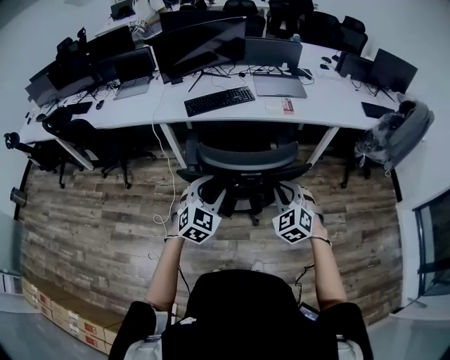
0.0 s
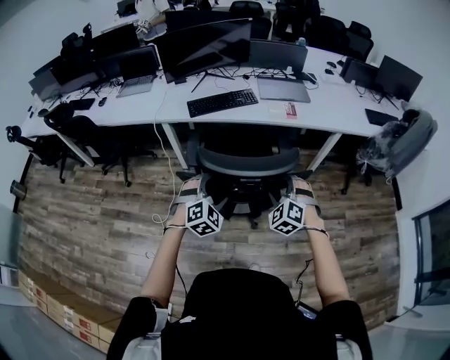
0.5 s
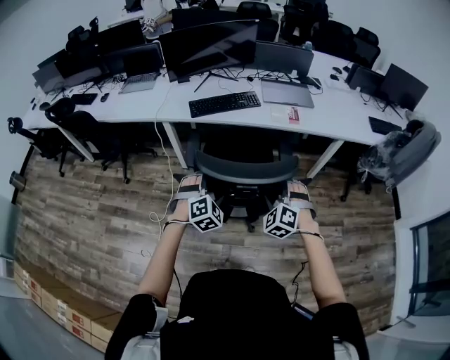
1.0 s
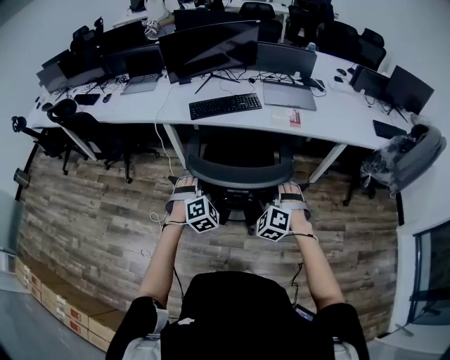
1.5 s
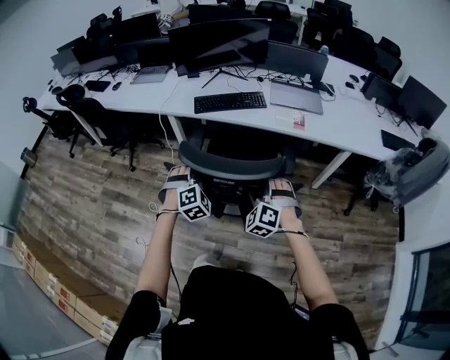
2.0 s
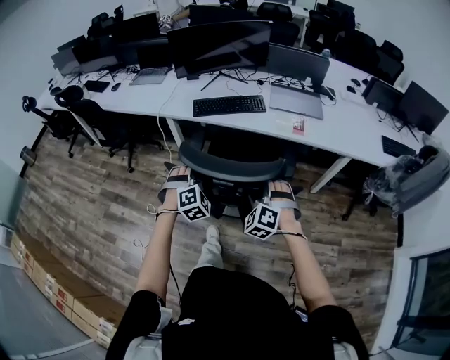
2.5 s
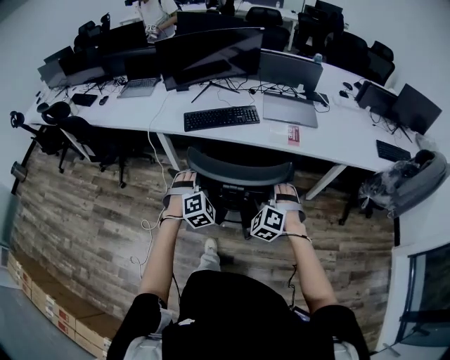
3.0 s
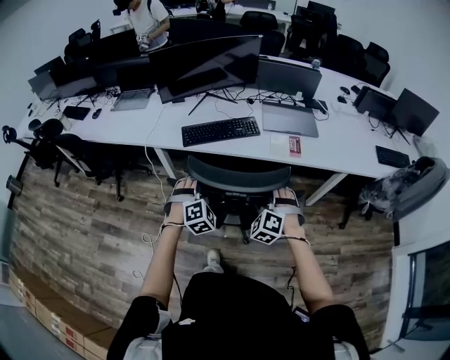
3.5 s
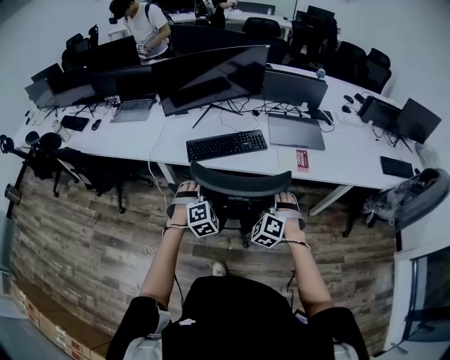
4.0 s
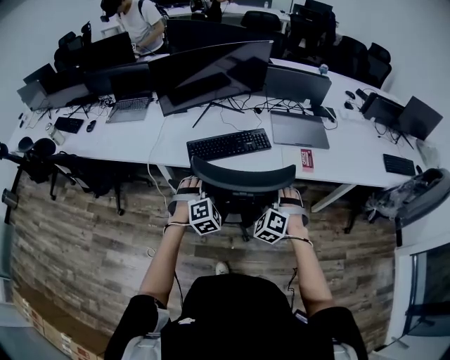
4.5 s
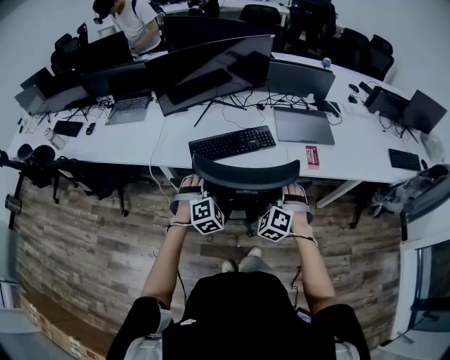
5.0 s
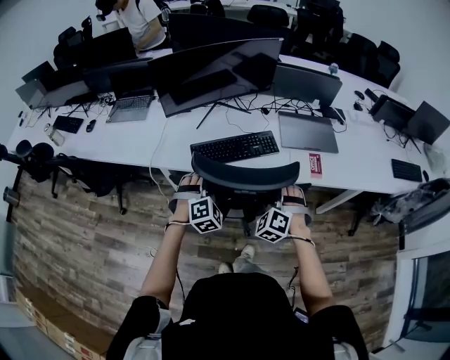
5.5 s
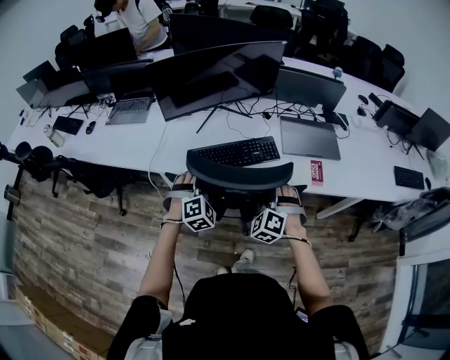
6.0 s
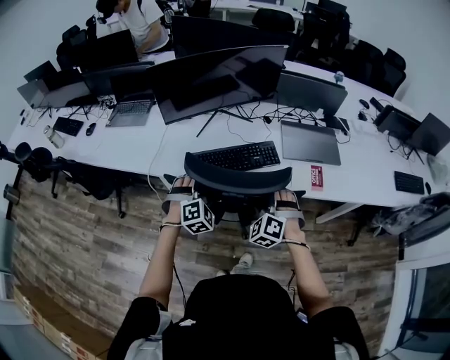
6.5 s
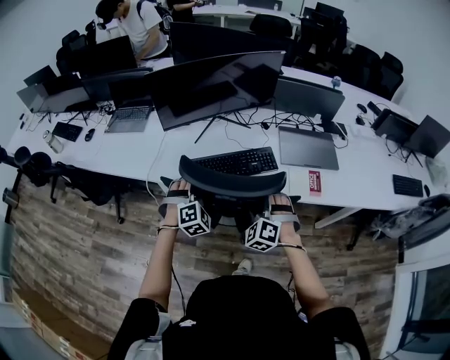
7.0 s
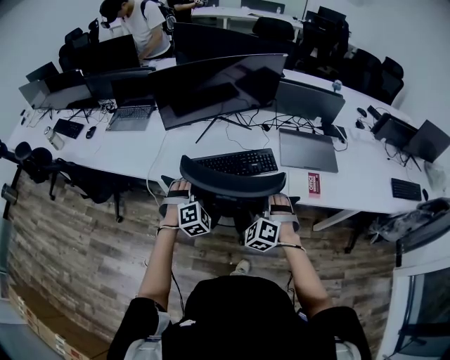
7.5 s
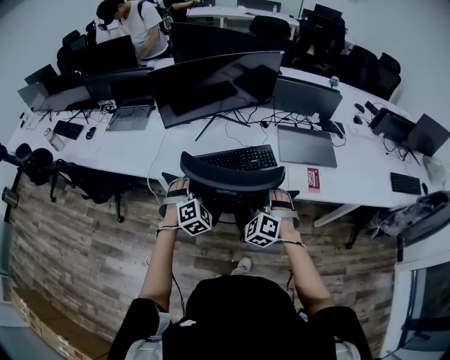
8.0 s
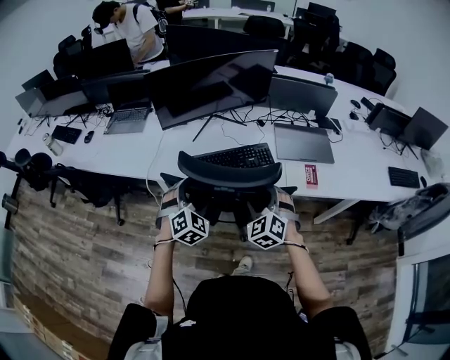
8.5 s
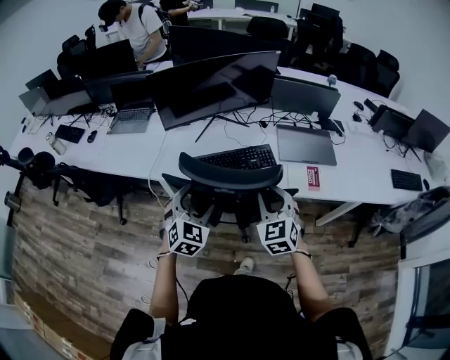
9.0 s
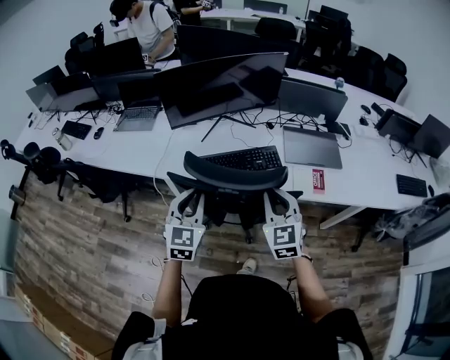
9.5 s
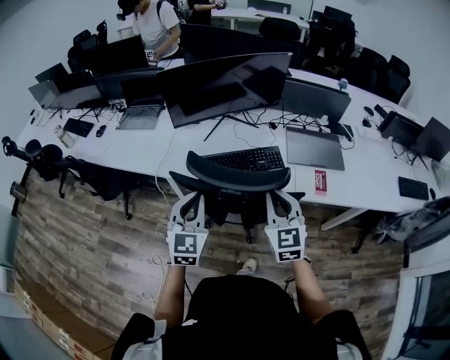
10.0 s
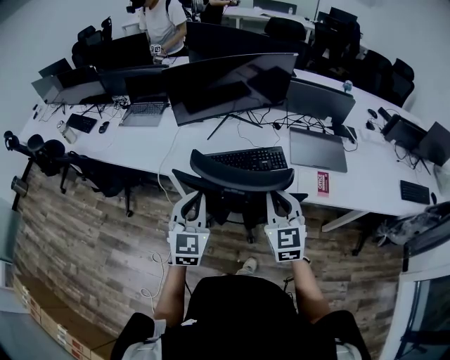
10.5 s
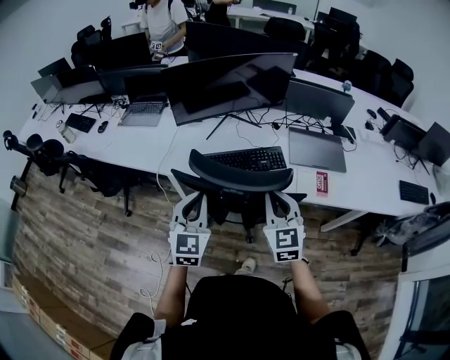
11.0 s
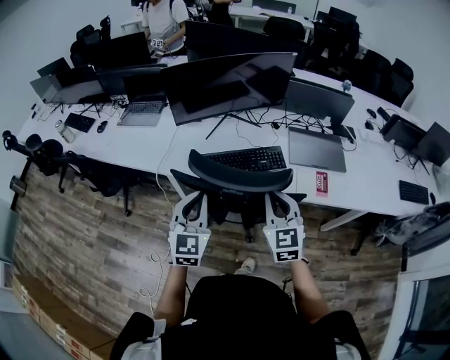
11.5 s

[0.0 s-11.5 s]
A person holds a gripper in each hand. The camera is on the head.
0.0 to 2.0 s: The right gripper travels forward by roughly 10 cm, swivels approximately 30 degrees, and opens up, while the left gripper heads forward and downward, covering about 15 cm, rotates roughly 30 degrees, and opens.
2.0 to 4.0 s: The two grippers go about 25 cm forward.
4.0 to 6.0 s: The grippers both shift forward and to the left by some 15 cm.
6.0 to 7.5 s: The grippers make only small movements.
7.5 to 9.5 s: The right gripper heads upward, covering approximately 10 cm, twists approximately 40 degrees clockwise, seen from behind, and closes up. Meanwhile the left gripper shifts approximately 15 cm upward and backward, rolls counterclockwise, seen from behind, by approximately 50 degrees, and closes up.
9.5 to 11.5 s: There are only small adjustments of the grippers.

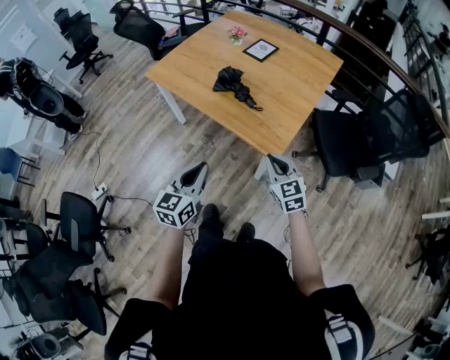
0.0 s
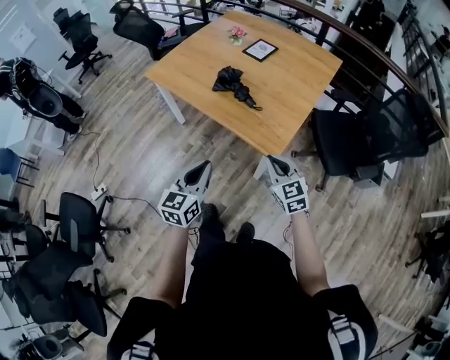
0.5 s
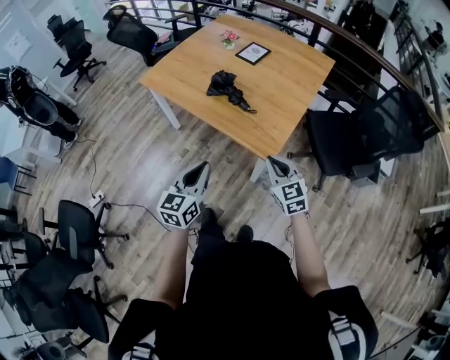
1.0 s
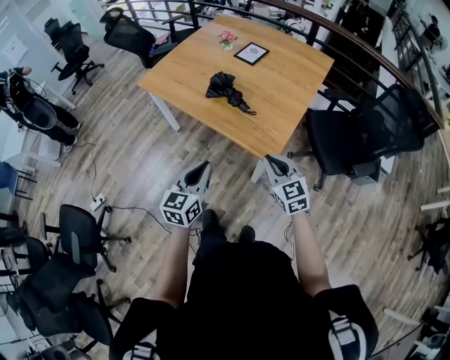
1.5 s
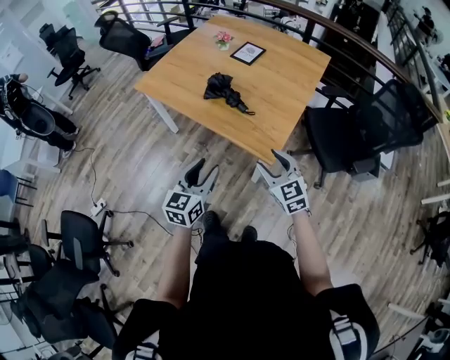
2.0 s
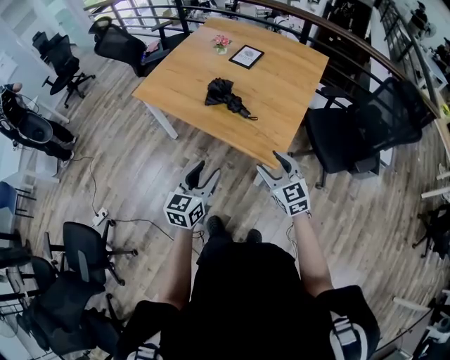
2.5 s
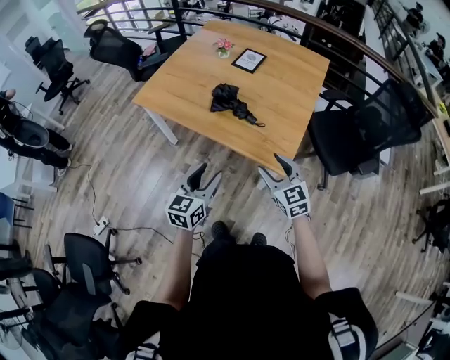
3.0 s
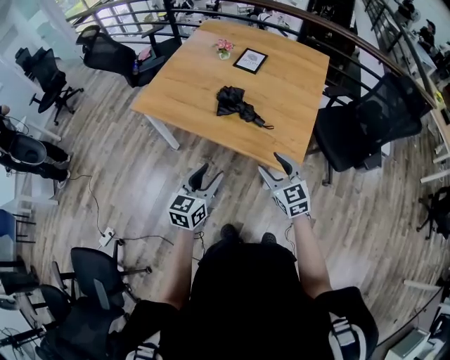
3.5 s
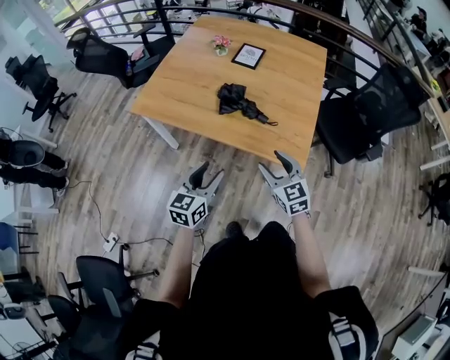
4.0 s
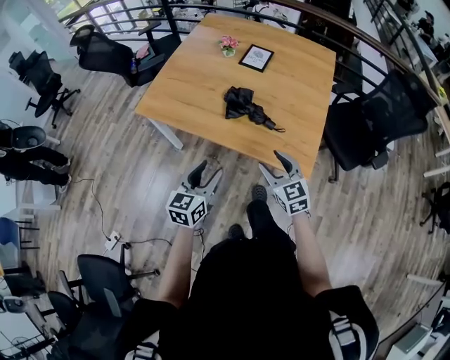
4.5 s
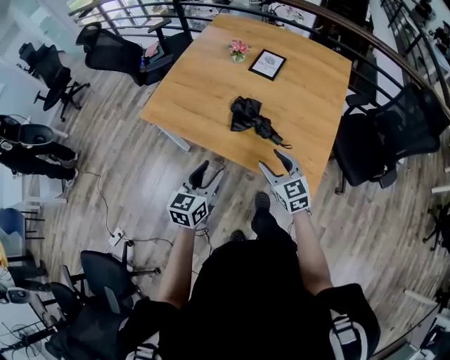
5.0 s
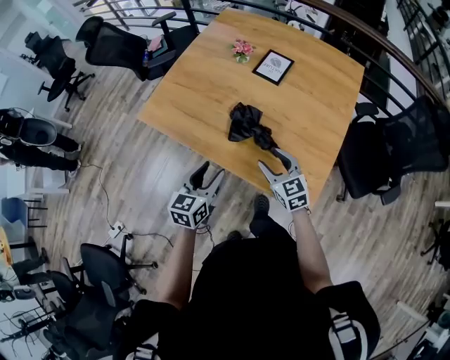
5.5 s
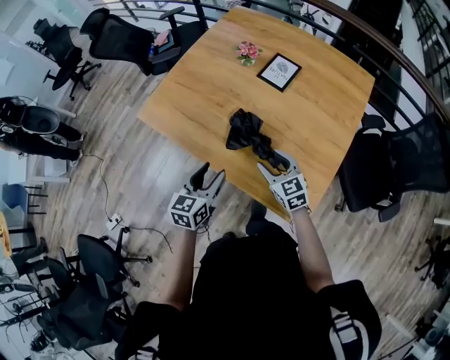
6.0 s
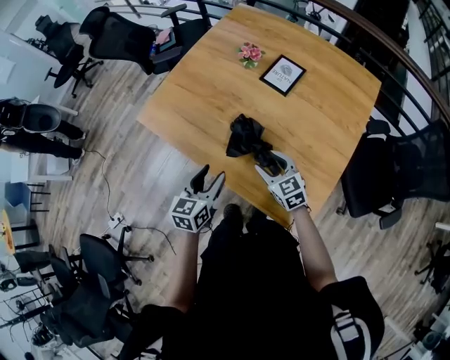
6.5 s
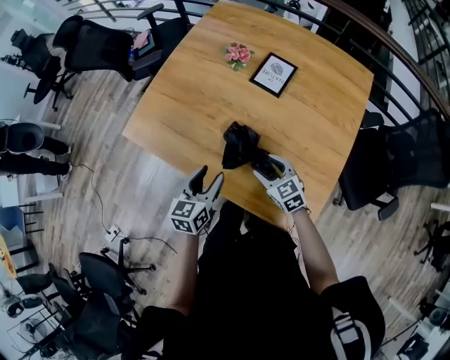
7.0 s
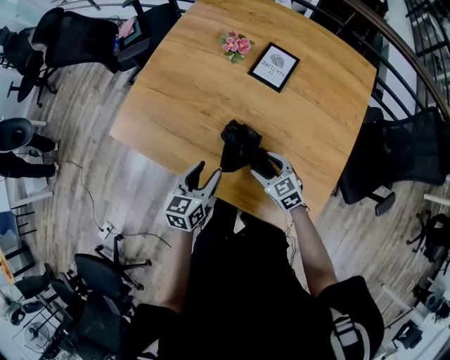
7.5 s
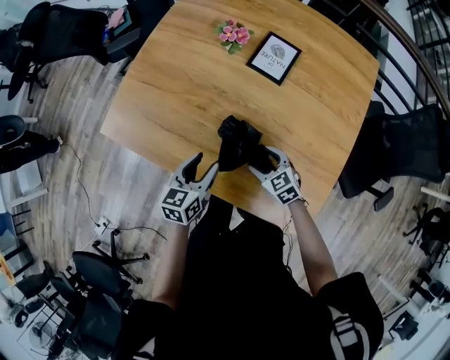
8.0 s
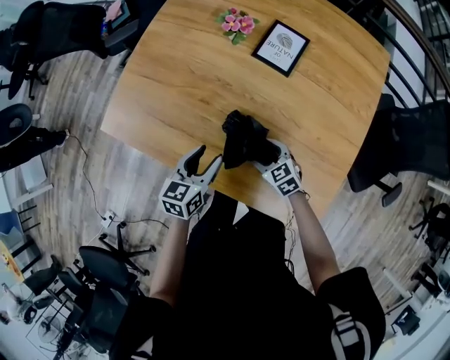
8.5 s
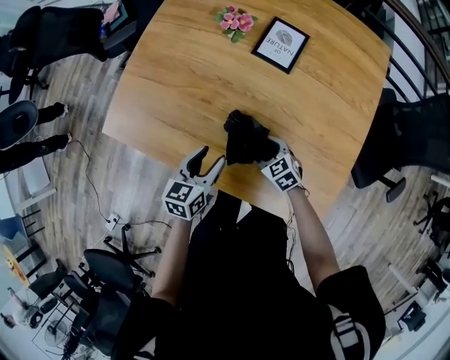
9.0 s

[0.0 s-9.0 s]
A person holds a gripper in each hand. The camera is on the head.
0.0 to 2.0 s: The right gripper opens its fingers, while the left gripper opens up.
2.0 to 4.5 s: Both grippers travel together to the left and forward, about 20 cm.
4.5 to 7.0 s: The right gripper travels forward and downward by roughly 25 cm, and changes its angle by about 20 degrees. Meanwhile the left gripper is displaced forward by roughly 25 cm.
7.0 to 9.0 s: The left gripper shifts about 10 cm downward and forward, while the right gripper travels downward by approximately 15 cm.

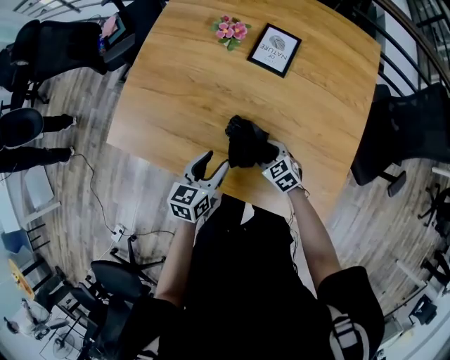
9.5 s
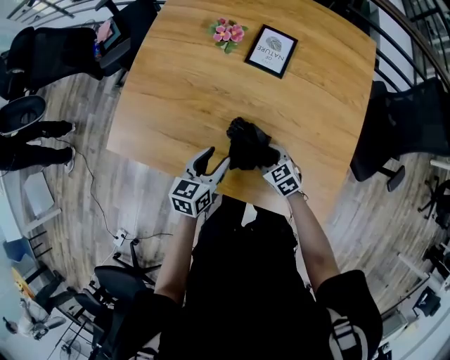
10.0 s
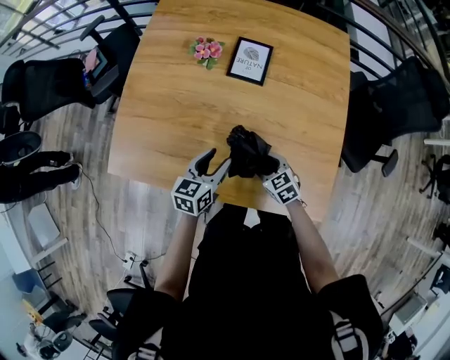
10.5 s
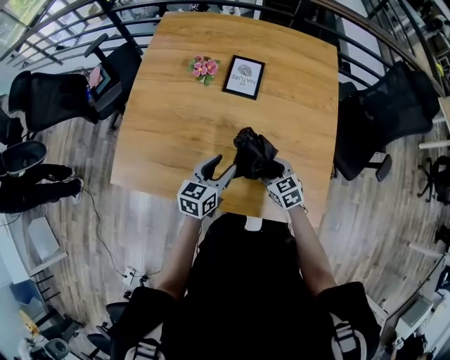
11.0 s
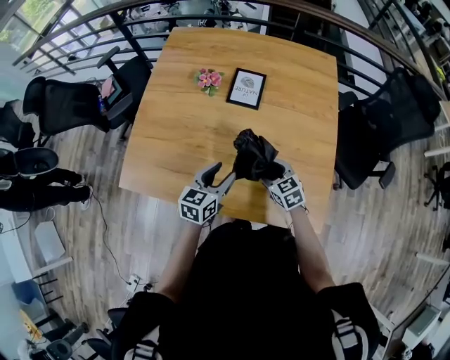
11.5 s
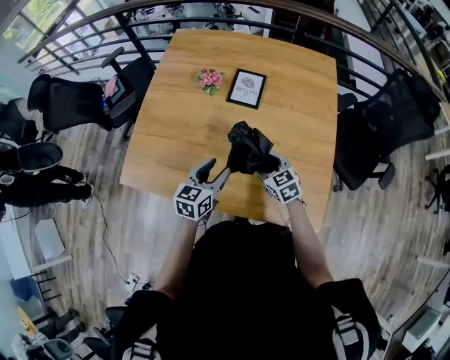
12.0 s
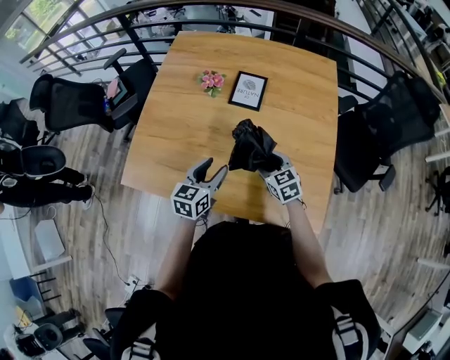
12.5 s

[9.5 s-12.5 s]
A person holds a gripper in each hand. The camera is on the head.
9.5 to 11.0 s: The right gripper travels upward and to the right by roughly 10 cm, and rotates roughly 20 degrees. Meanwhile the left gripper heads to the right, covering approximately 5 cm.
11.0 to 12.5 s: The left gripper shifts by approximately 5 cm. Meanwhile the right gripper goes roughly 5 cm upward.

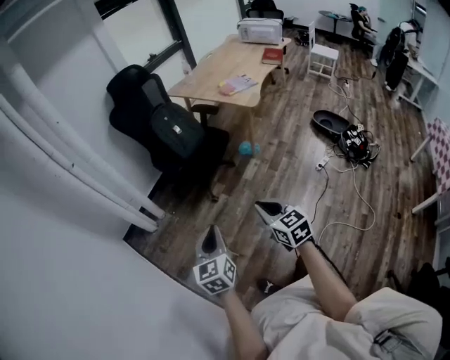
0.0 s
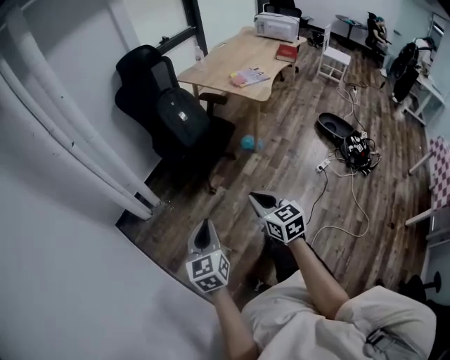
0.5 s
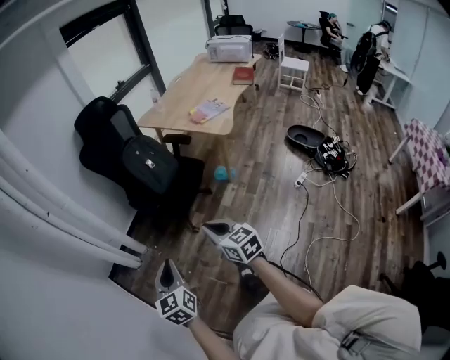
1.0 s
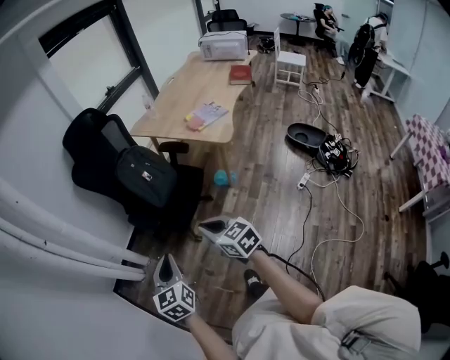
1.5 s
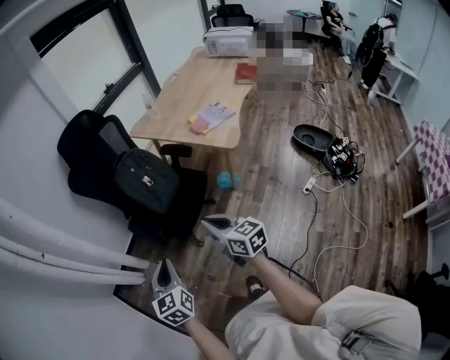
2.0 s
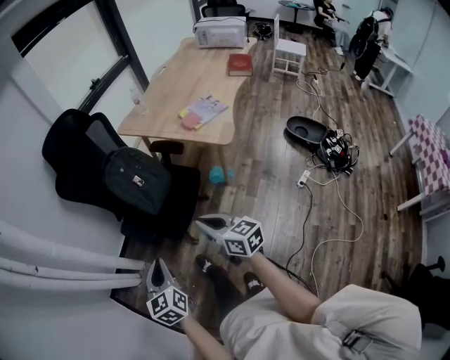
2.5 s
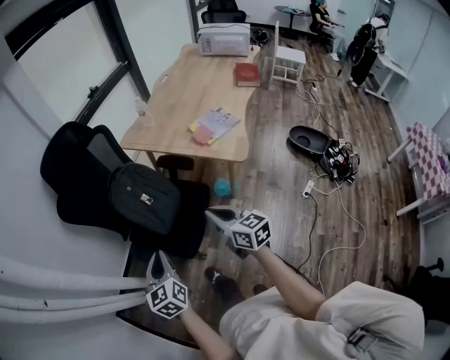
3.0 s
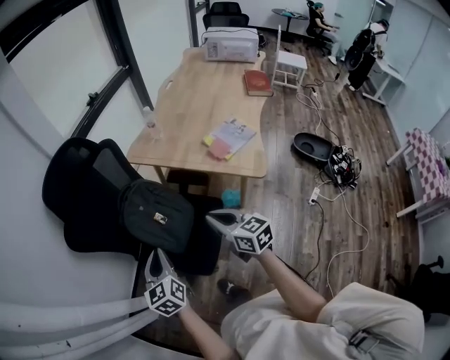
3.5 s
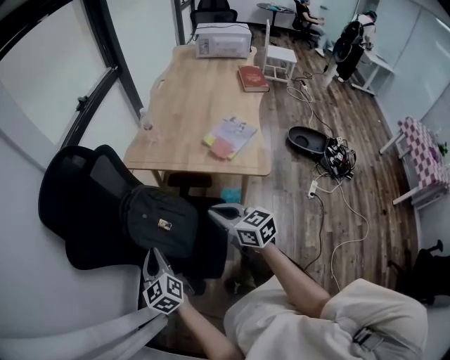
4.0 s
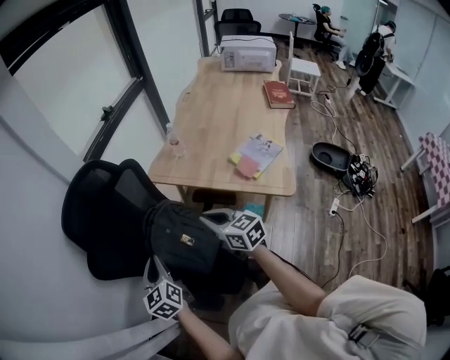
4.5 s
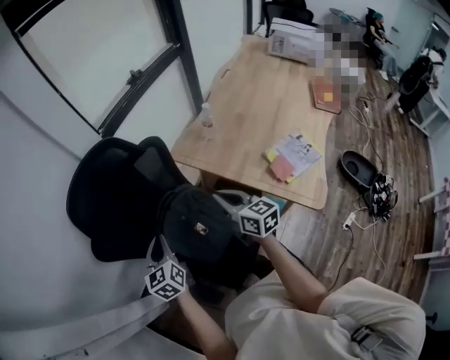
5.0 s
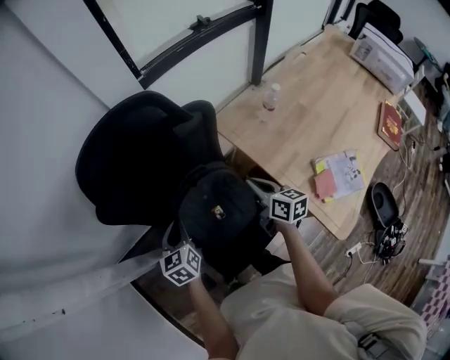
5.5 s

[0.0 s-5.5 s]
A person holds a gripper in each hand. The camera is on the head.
0.0 to 2.0 s: The grippers both shift forward by approximately 35 cm. The right gripper rotates approximately 20 degrees.
2.0 to 3.5 s: Both grippers travel together forward, some 40 cm.
3.5 to 5.5 s: The right gripper ends up roughly 40 cm from where it was, and turns by roughly 20 degrees. Meanwhile the left gripper moves about 30 cm, and turns by roughly 30 degrees.
